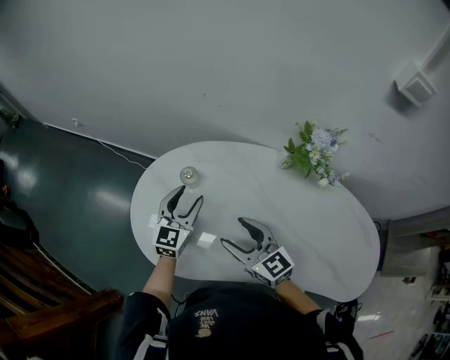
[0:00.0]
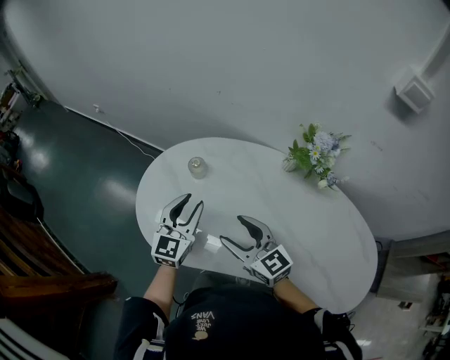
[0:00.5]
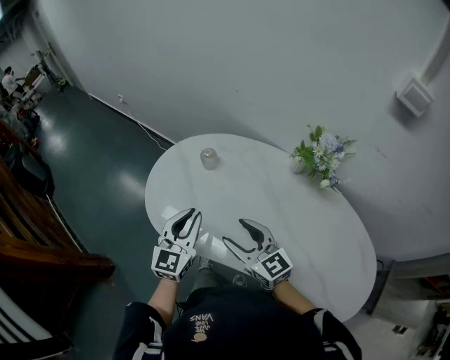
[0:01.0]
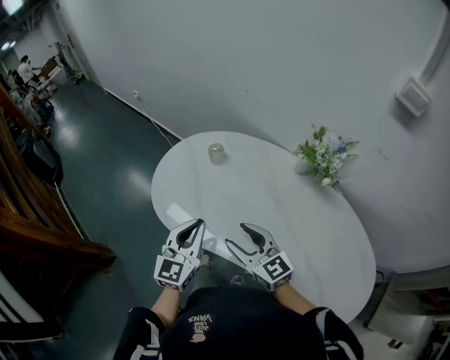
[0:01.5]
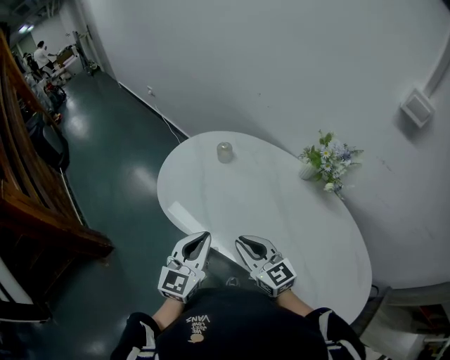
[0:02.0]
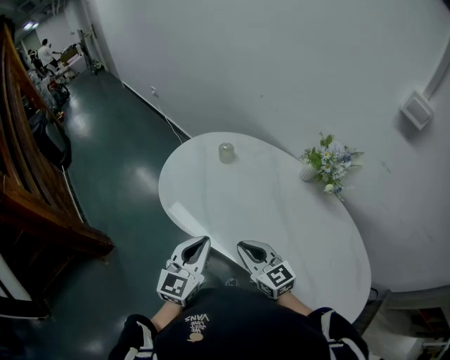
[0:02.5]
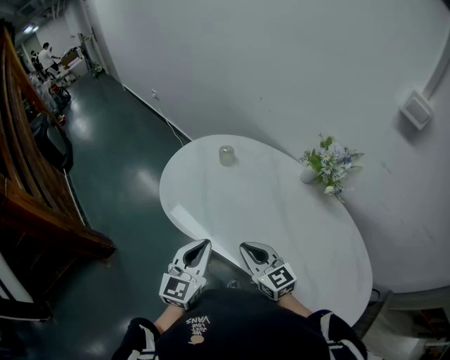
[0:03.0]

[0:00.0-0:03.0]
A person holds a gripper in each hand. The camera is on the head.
0:00.0 to 0:01.5: The right gripper goes roughly 15 cm backward, while the left gripper goes roughly 25 cm backward, and closes up.
0:01.5 to 0:03.0: The right gripper goes some 5 cm backward, and closes its fingers. Meanwhile the left gripper heads backward, covering some 10 cm.

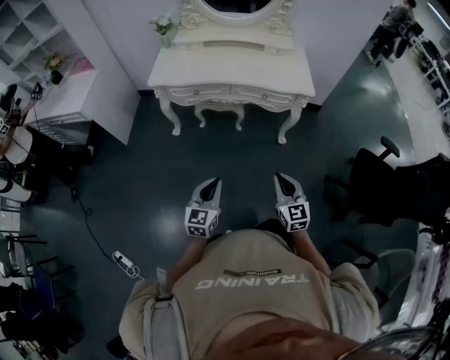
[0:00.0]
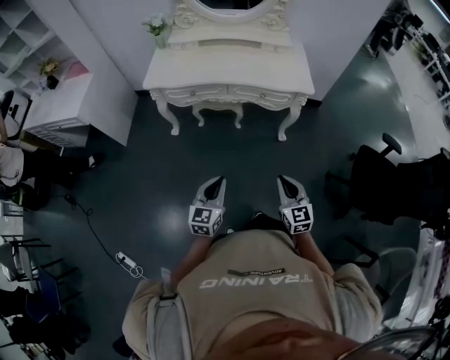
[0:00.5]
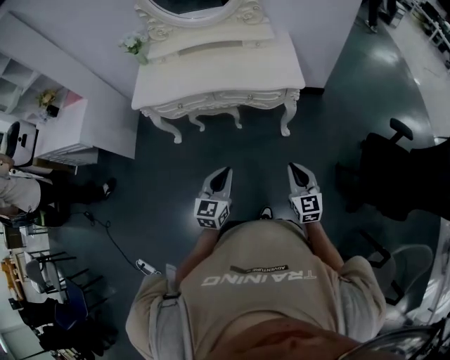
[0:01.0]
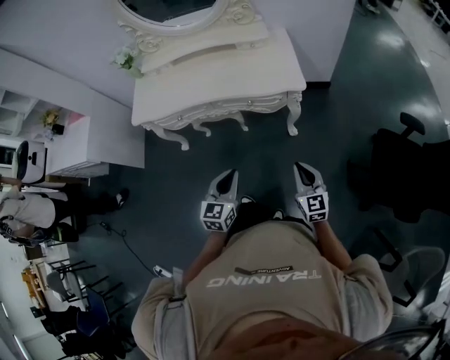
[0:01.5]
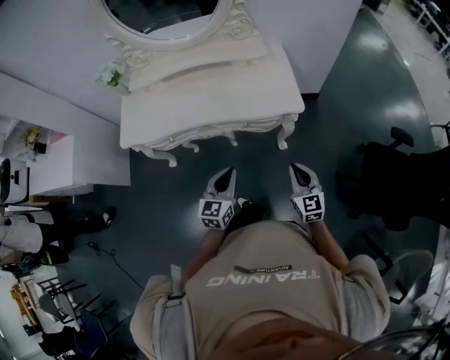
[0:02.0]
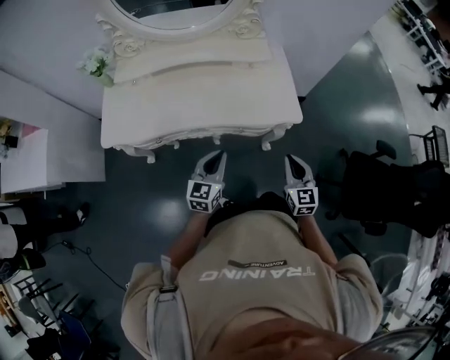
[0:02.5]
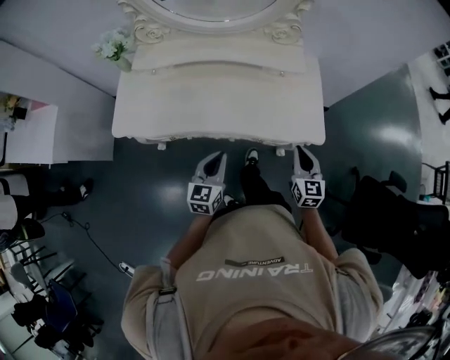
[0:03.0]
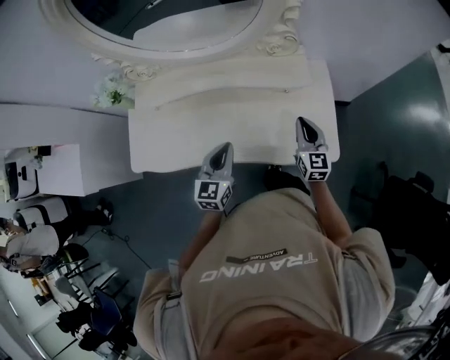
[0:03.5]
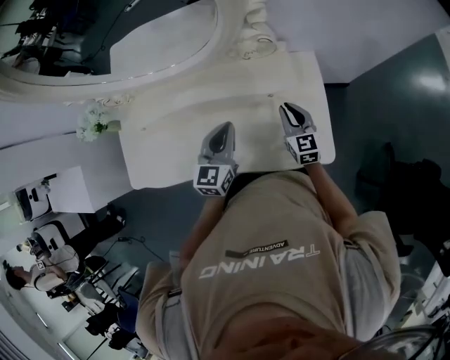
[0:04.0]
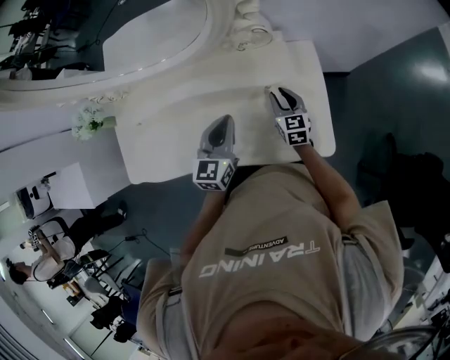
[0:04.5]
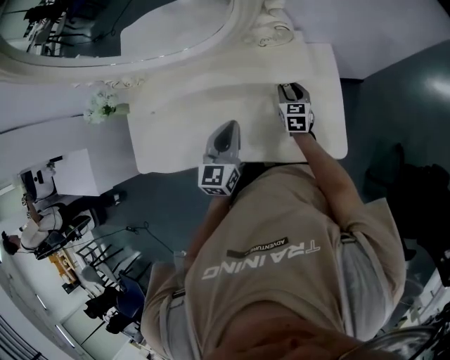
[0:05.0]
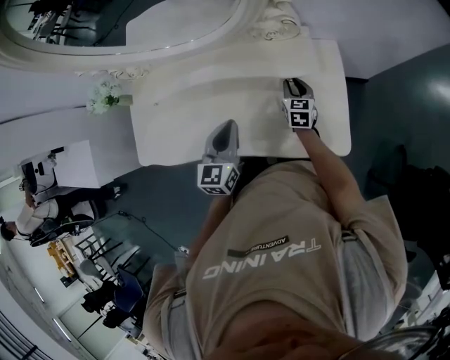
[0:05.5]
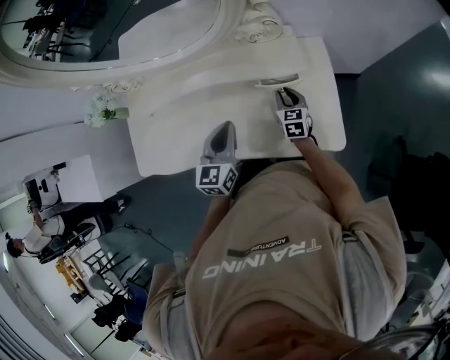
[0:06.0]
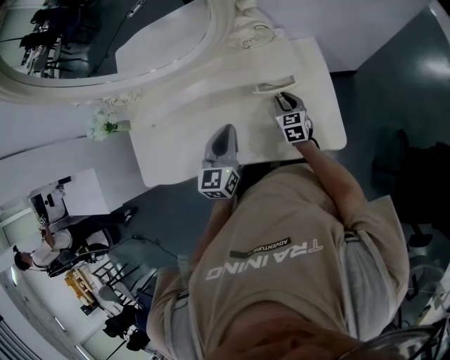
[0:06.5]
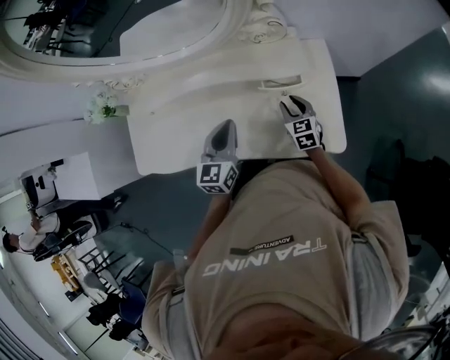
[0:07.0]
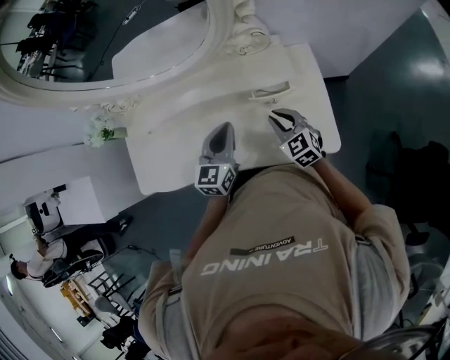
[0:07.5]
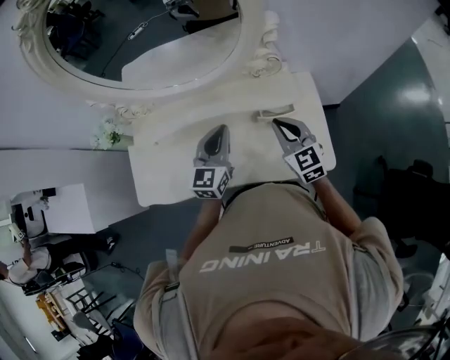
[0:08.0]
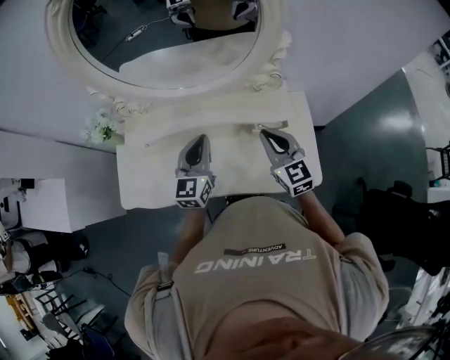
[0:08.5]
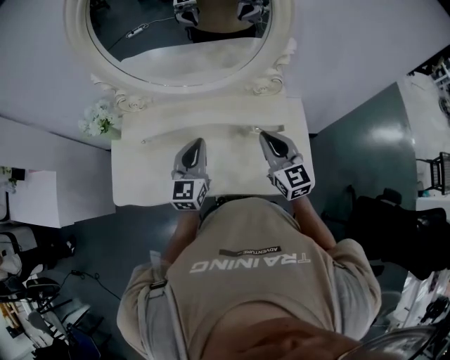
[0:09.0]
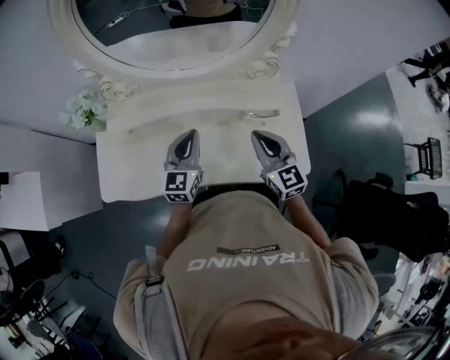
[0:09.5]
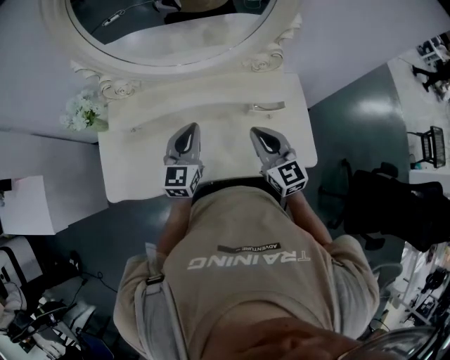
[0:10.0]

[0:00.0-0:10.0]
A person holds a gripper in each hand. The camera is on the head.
0:00.0 to 0:02.0: The grippers both shift forward and to the right by some 35 cm.
0:02.0 to 0:04.0: The pair of grippers is taken forward, some 50 cm.
0:04.0 to 0:06.0: The right gripper travels downward by some 10 cm. The left gripper shifts by roughly 5 cm.
0:06.0 to 0:08.0: The right gripper moves upward, some 25 cm, changes its angle by some 30 degrees, and closes its fingers. Meanwhile the left gripper goes approximately 10 cm upward.
0:08.0 to 0:10.0: Both grippers move to the left, about 10 cm.

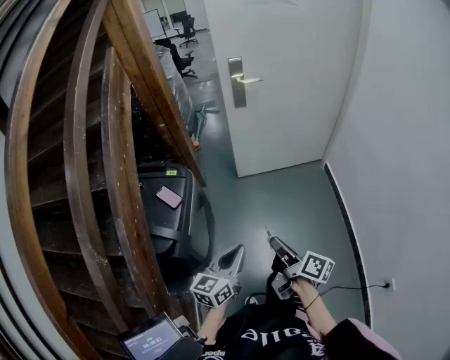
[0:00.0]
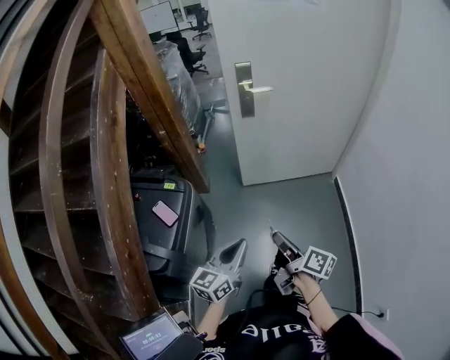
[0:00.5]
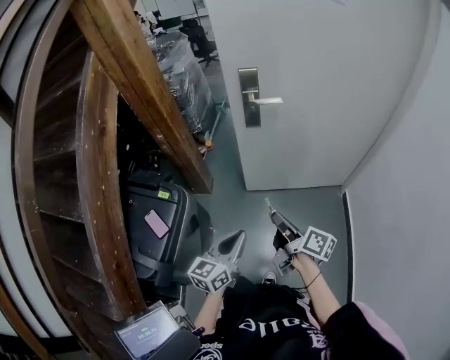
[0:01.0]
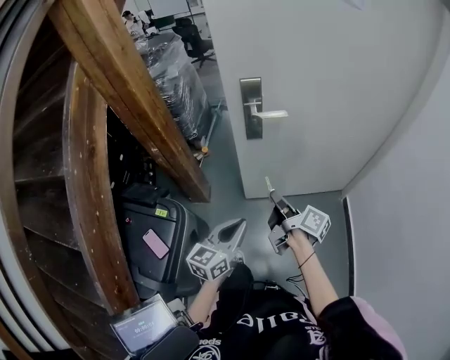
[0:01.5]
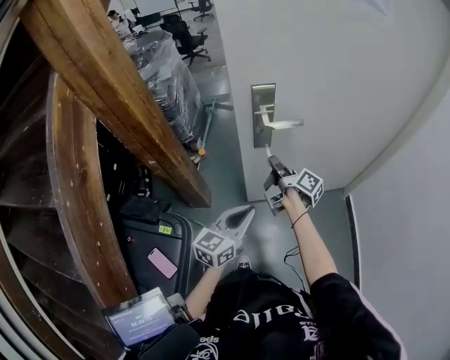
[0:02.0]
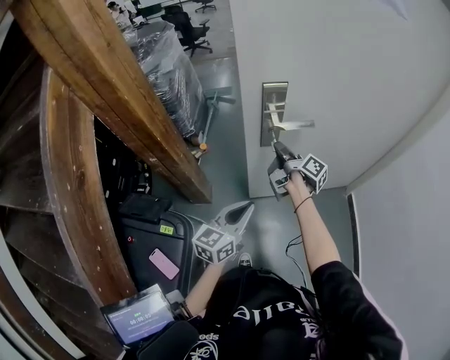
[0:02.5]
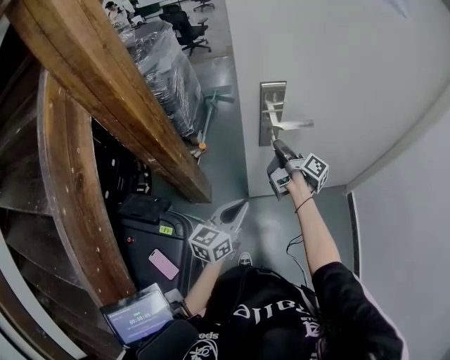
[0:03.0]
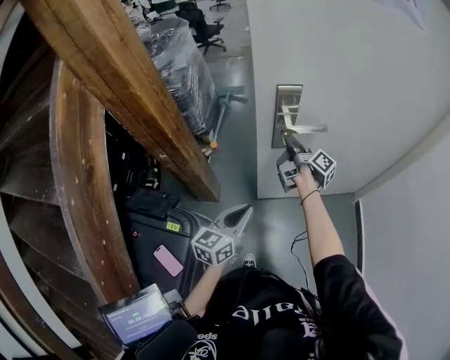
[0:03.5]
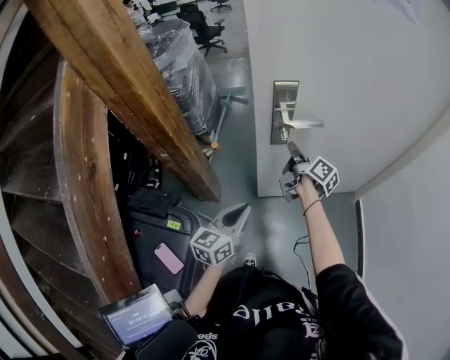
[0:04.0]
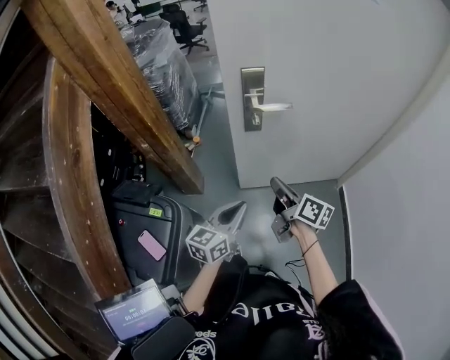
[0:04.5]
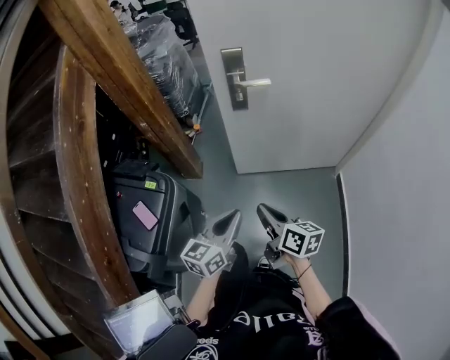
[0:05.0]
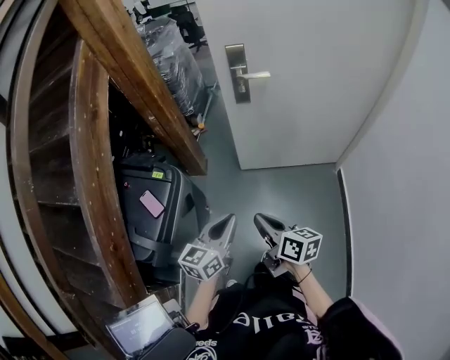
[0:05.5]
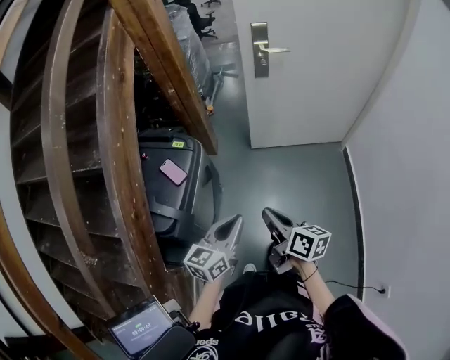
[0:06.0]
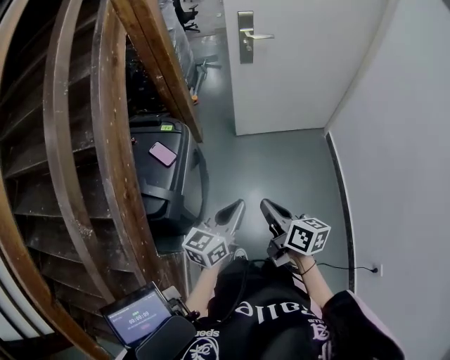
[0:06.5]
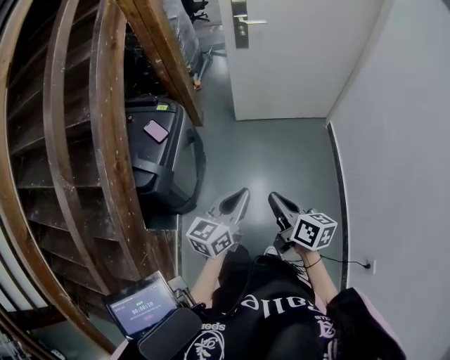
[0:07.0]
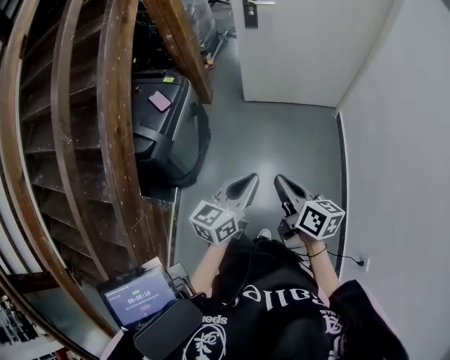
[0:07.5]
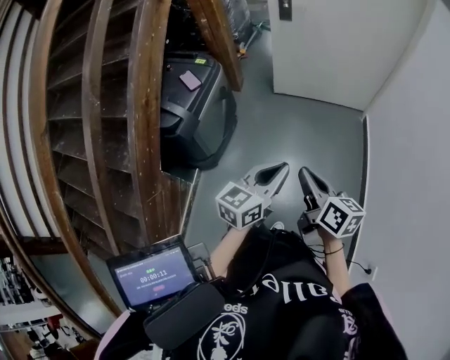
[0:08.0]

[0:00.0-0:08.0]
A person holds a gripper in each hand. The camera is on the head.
0:00.0 to 0:02.0: The pair of grippers is taken forward, roughly 60 cm.
0:02.0 to 0:04.0: The left gripper goes roughly 5 cm to the left. Meanwhile the right gripper heads forward, covering about 5 cm.
0:04.0 to 0:06.0: The pair of grippers is taken backward, some 60 cm. The right gripper changes its angle by about 30 degrees.
0:06.0 to 0:08.0: The left gripper shifts some 30 cm to the right and backward. Meanwhile the right gripper shifts approximately 30 cm backward and to the right.

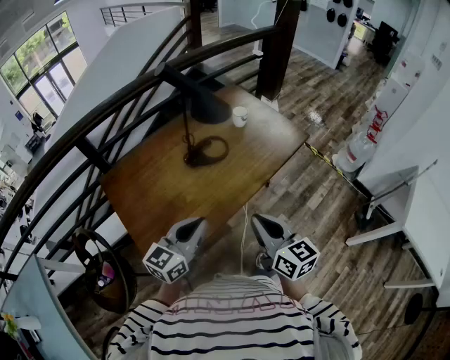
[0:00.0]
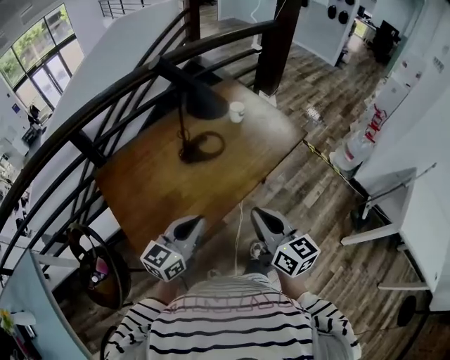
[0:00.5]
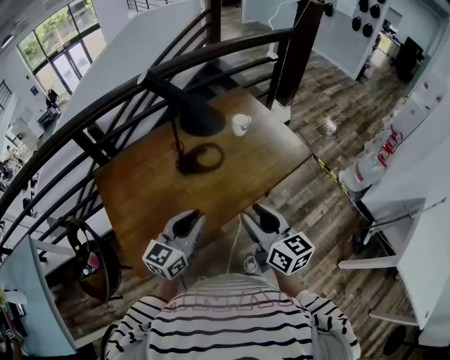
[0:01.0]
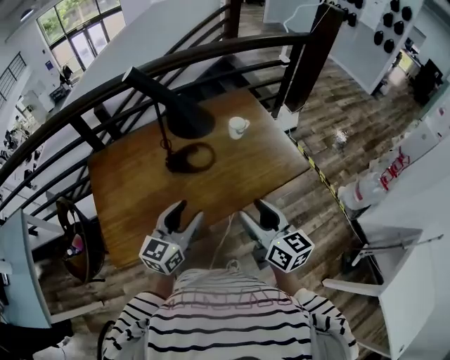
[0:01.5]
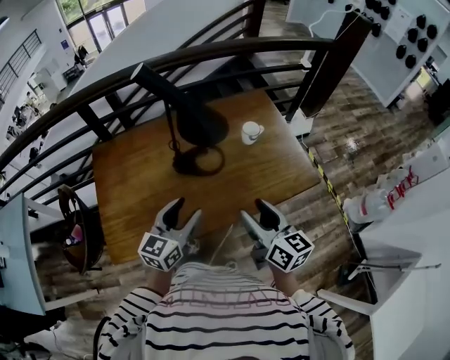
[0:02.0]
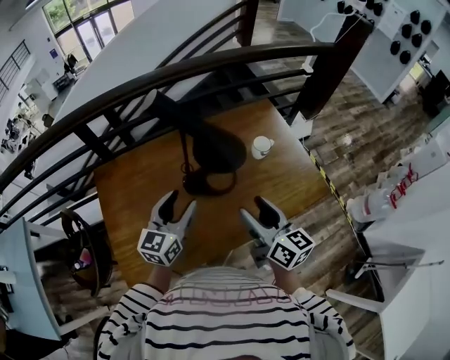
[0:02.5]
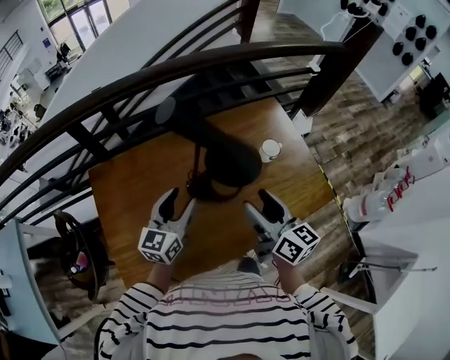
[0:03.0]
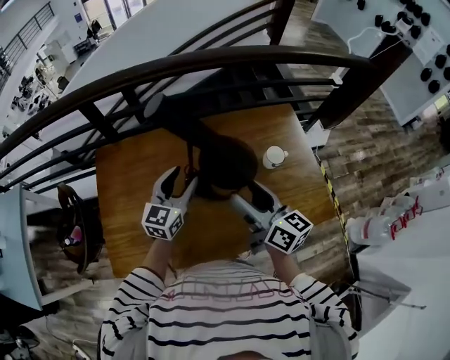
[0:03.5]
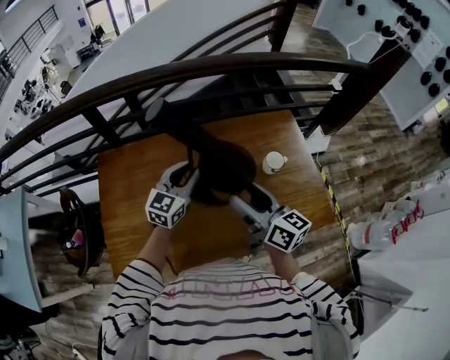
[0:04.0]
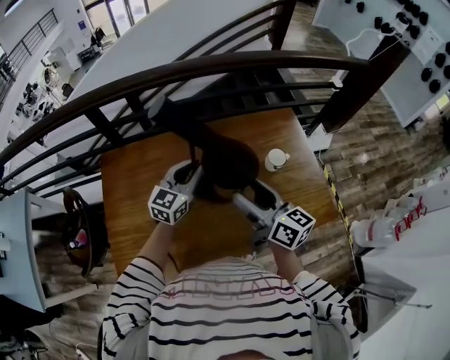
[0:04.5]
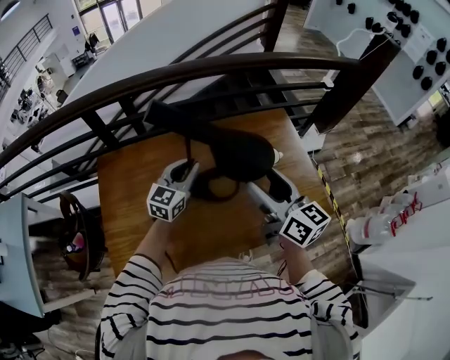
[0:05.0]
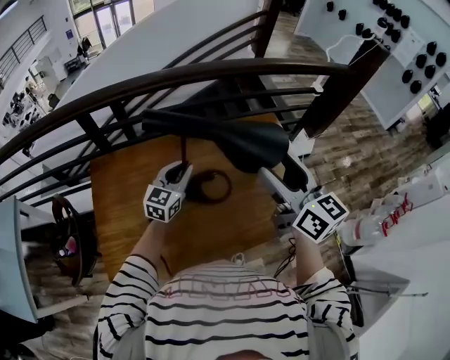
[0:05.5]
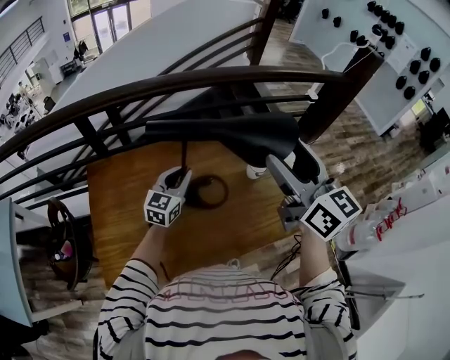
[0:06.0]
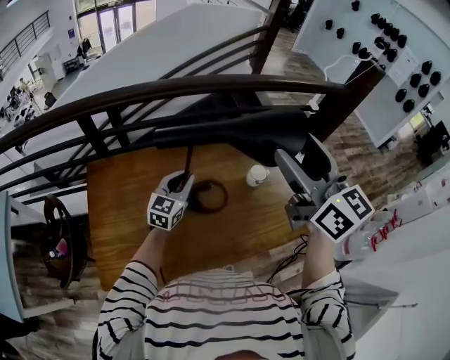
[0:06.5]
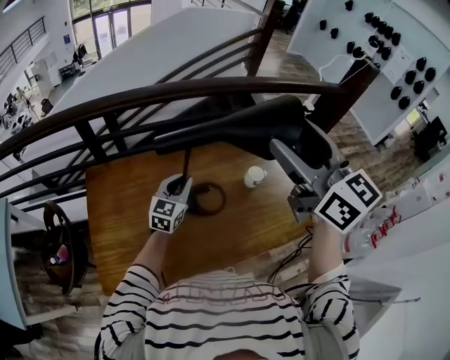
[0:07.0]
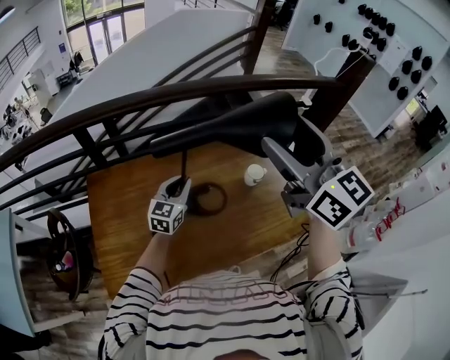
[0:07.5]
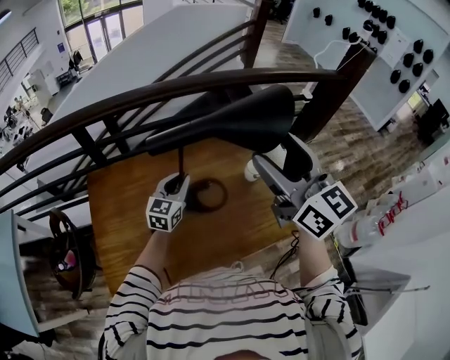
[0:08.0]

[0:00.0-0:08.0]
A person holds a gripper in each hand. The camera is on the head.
0:00.0 to 0:02.0: The grippers both shift forward and to the right by about 25 cm. The right gripper opens up; the left gripper turns by about 30 degrees, and opens up.
0:02.0 to 0:04.0: The grippers both shift forward by about 25 cm. The left gripper closes.
0:04.0 to 0:06.0: The right gripper goes roughly 20 cm upward, and changes its angle by some 30 degrees.
0:06.0 to 0:08.0: The right gripper goes upward and returns, some 10 cm each way.
